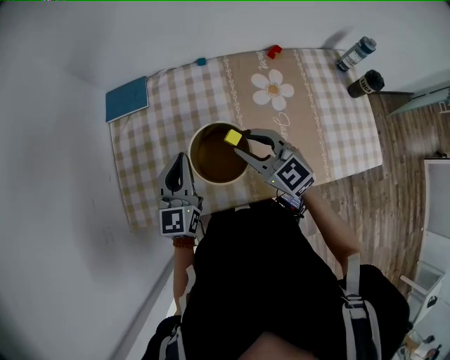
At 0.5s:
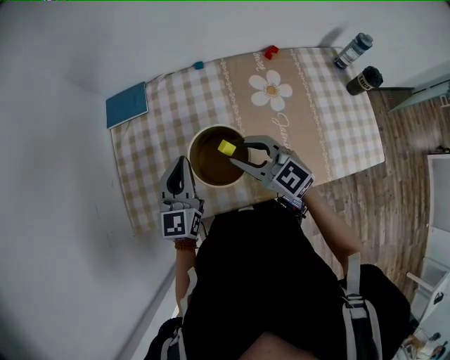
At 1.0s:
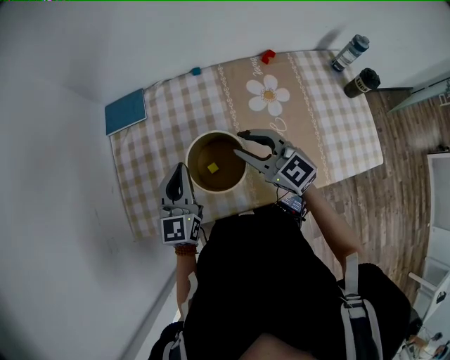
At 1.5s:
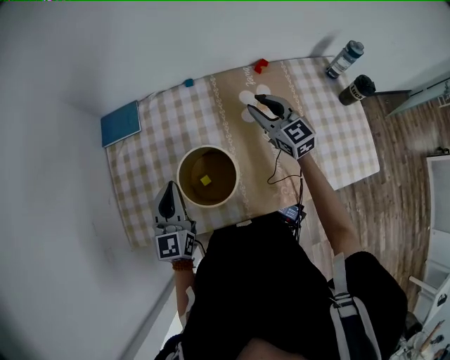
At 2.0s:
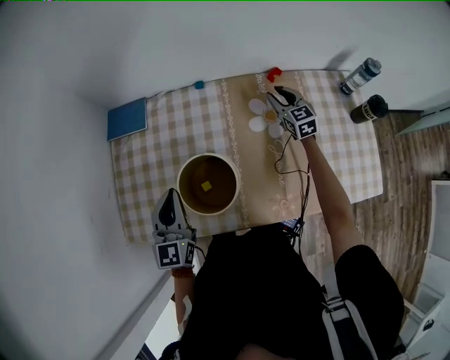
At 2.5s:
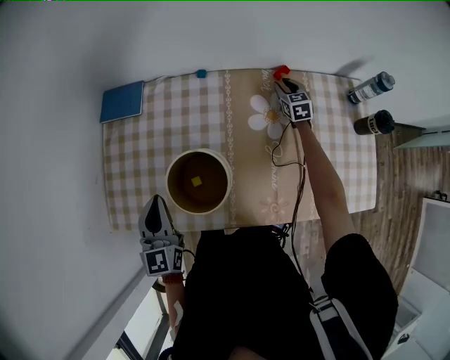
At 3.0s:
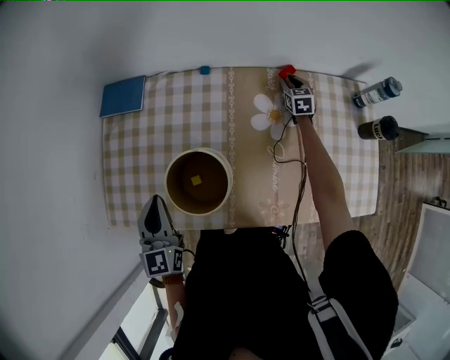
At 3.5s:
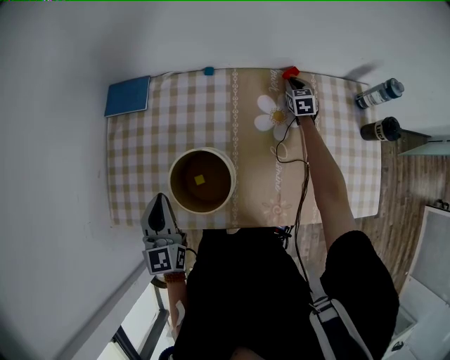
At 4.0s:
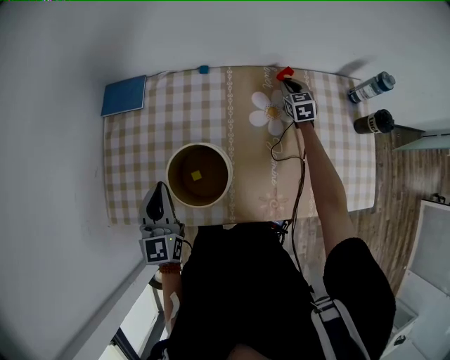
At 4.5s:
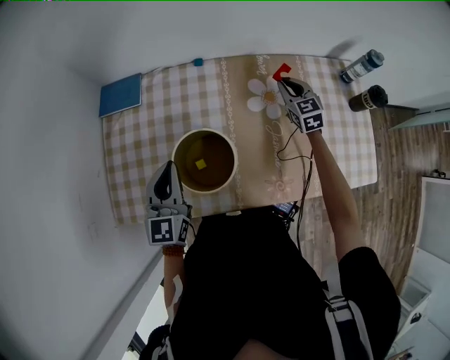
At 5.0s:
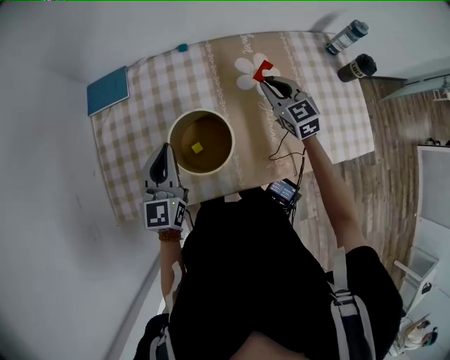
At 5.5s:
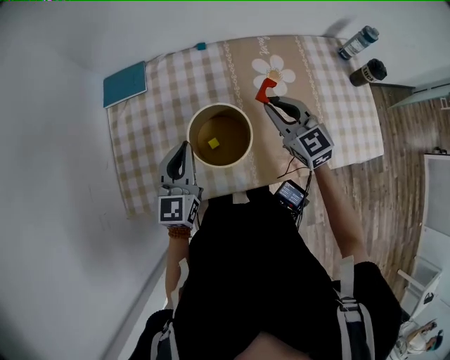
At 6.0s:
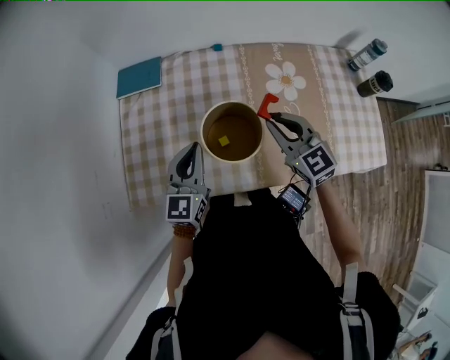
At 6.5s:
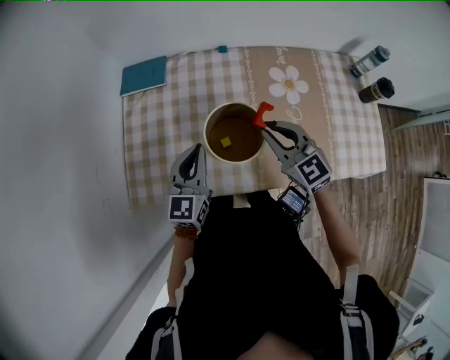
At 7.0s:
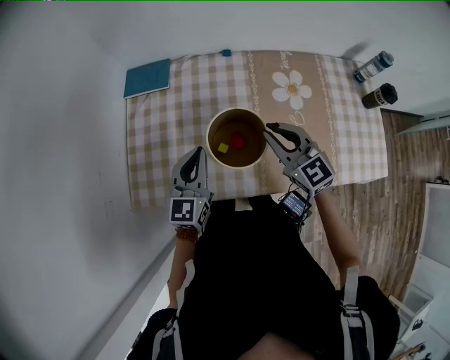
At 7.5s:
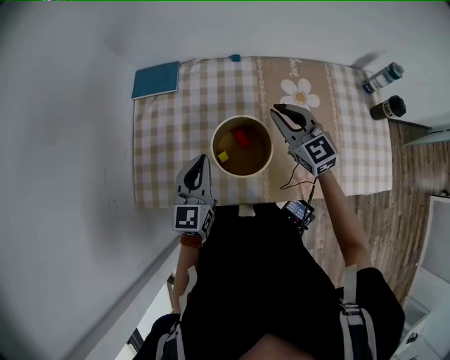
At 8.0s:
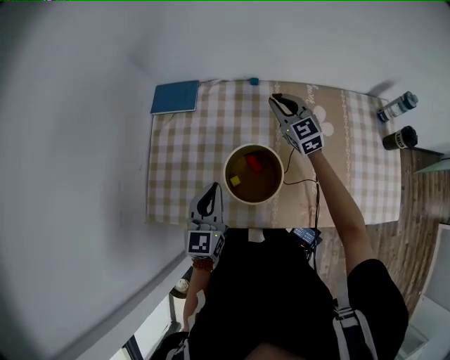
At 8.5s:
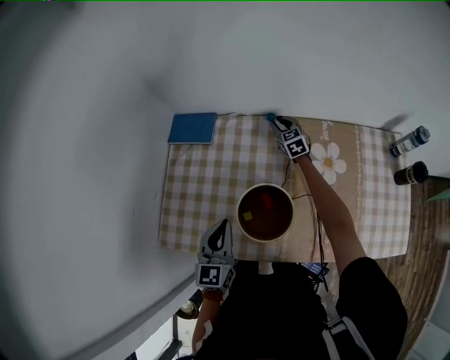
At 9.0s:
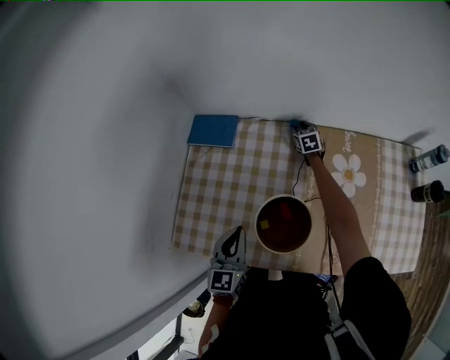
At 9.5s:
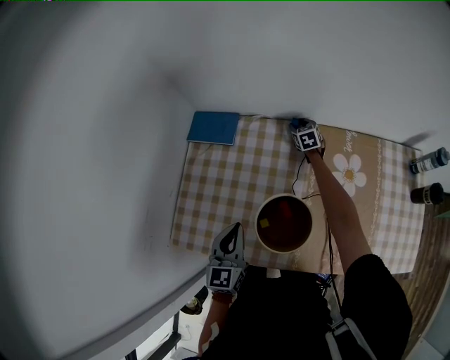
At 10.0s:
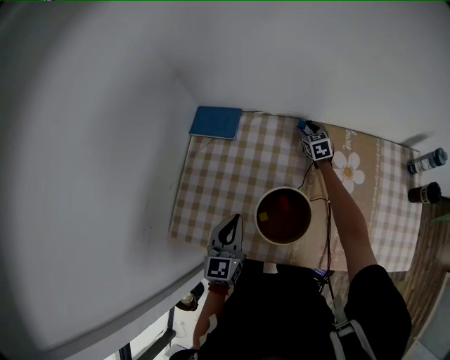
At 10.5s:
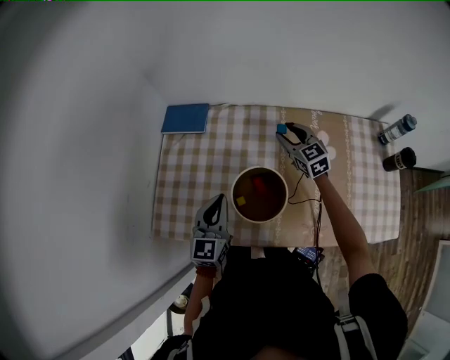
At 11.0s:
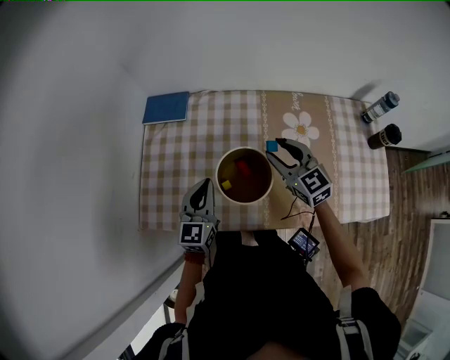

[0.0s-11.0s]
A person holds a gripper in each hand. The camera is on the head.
0.0s to 2.0s: The right gripper goes about 35 cm to the right, forward and downward, and turns by roughly 20 degrees.
2.0s to 3.5s: The right gripper shifts approximately 15 cm downward, forward and to the right, and closes its fingers.
3.5s to 5.5s: The right gripper moves backward, upward and to the left, approximately 40 cm, and turns by about 30 degrees. Meanwhile the left gripper swivels some 30 degrees.
5.5s to 7.5s: The right gripper shifts by approximately 5 cm.
7.5s to 9.0s: The right gripper travels forward and downward by about 40 cm, rotates about 30 degrees, and opens up.
9.0s to 11.0s: The right gripper heads backward and upward, covering some 40 cm, and rotates some 30 degrees.

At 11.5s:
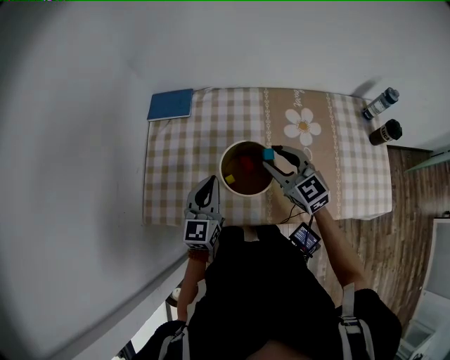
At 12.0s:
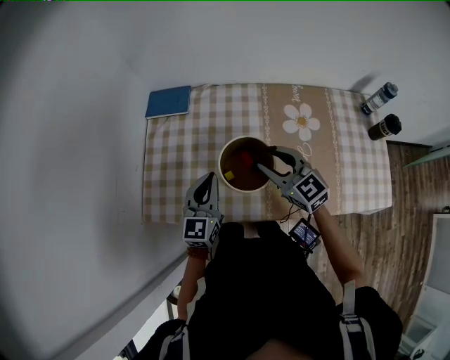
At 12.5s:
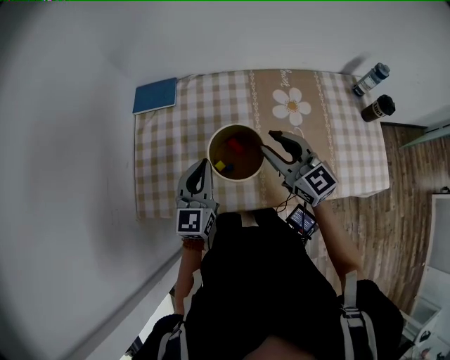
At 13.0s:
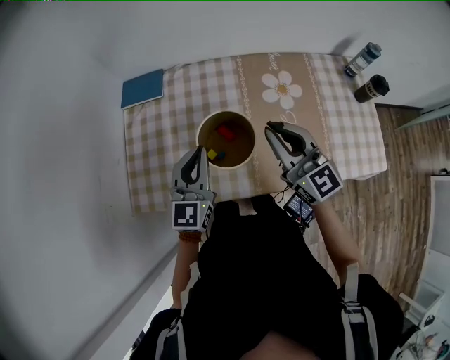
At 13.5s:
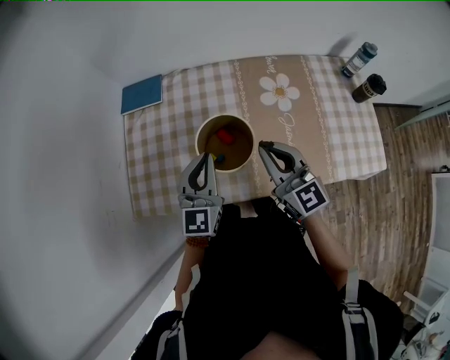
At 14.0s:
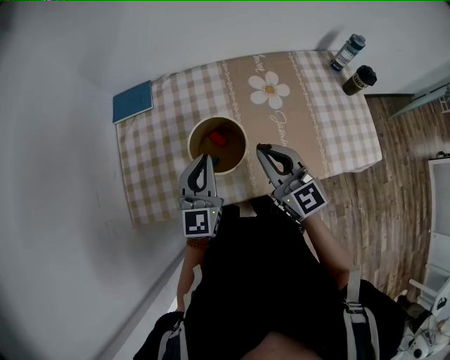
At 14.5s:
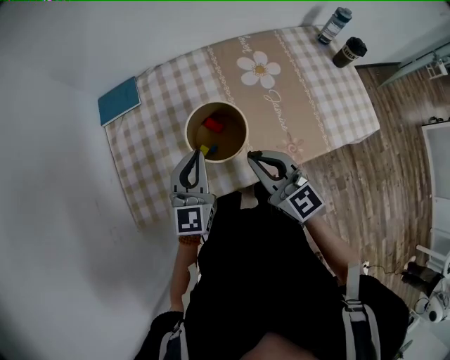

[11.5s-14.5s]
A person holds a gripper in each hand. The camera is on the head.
11.5s to 13.0s: The right gripper heads upward and backward, covering some 10 cm, changes its angle by some 20 degrees, and closes its fingers. Meanwhile the left gripper is displaced upward by some 5 cm.
13.0s to 14.5s: The right gripper travels backward, downward and to the left by some 10 cm.

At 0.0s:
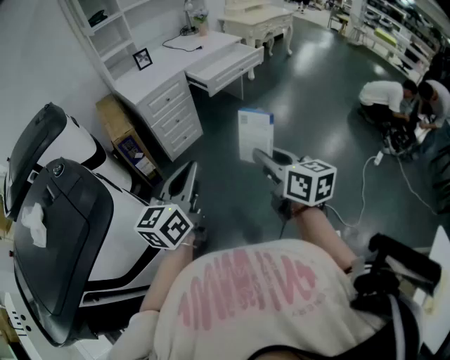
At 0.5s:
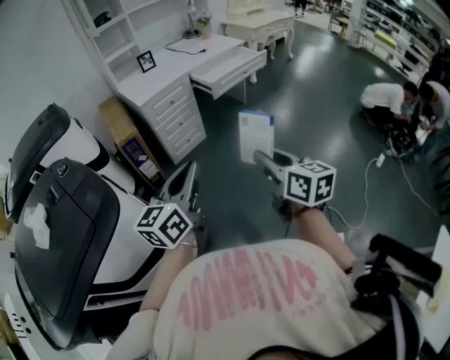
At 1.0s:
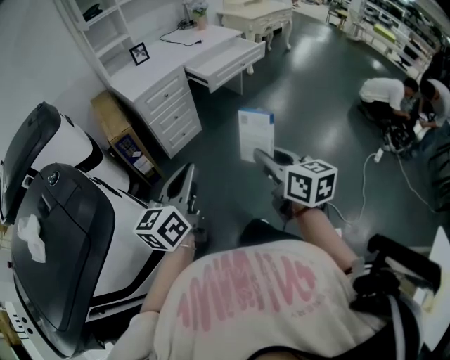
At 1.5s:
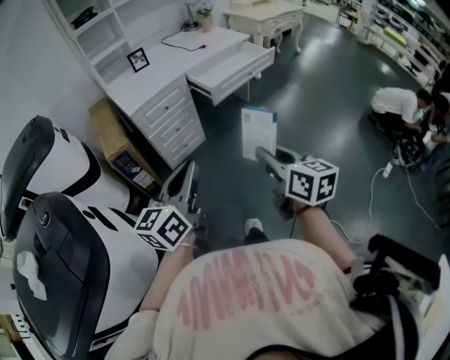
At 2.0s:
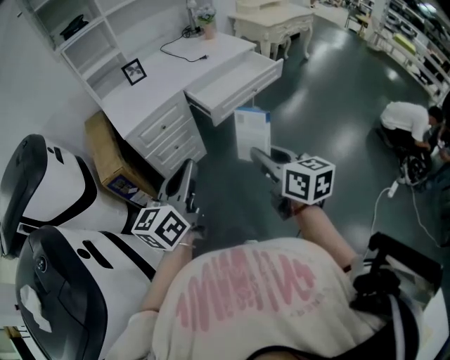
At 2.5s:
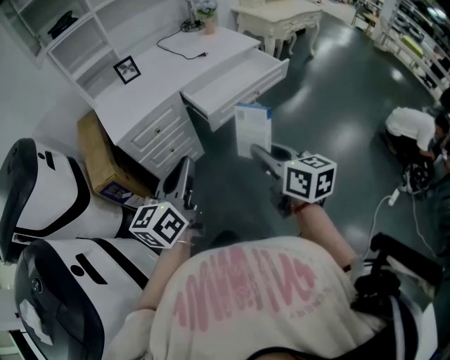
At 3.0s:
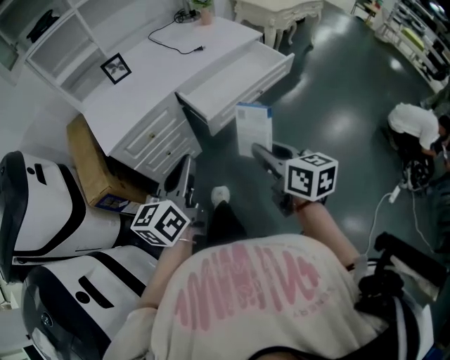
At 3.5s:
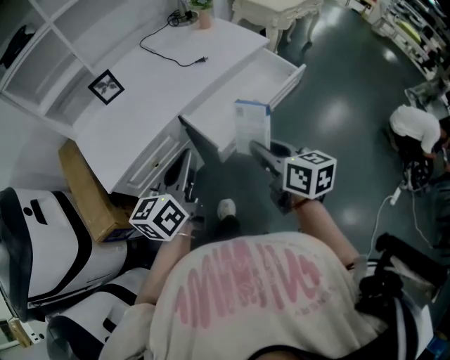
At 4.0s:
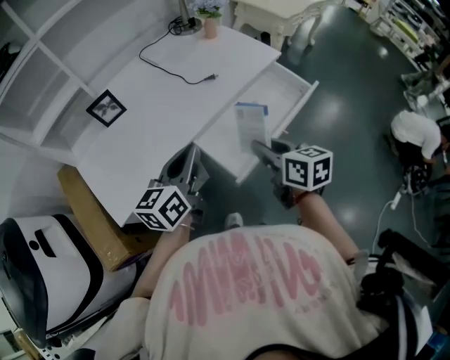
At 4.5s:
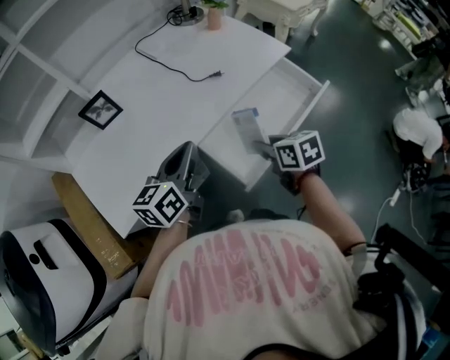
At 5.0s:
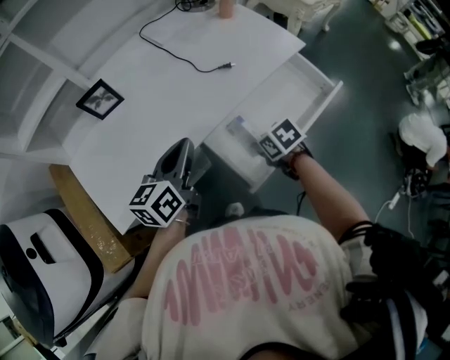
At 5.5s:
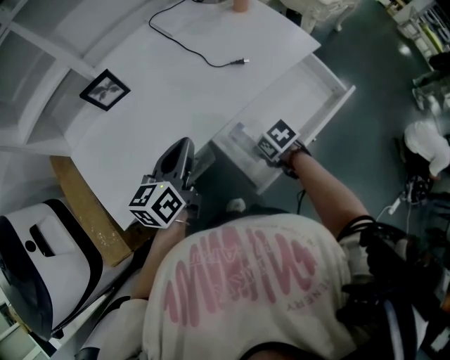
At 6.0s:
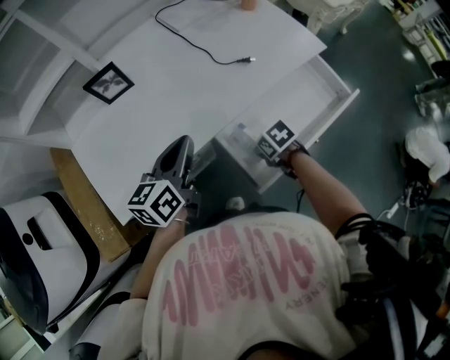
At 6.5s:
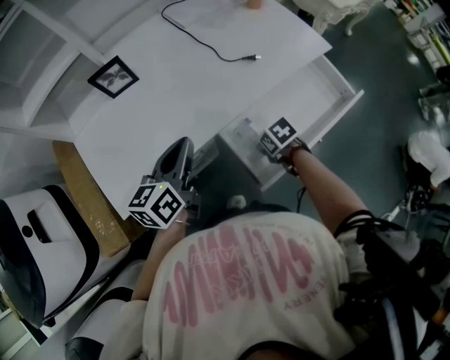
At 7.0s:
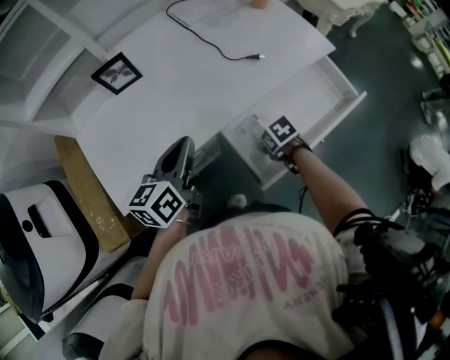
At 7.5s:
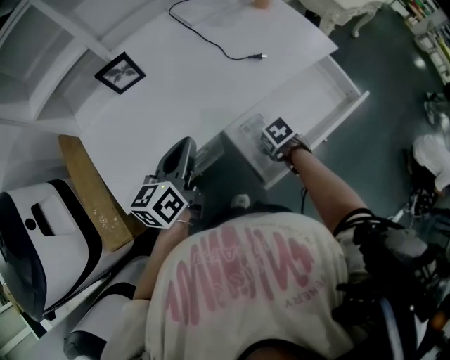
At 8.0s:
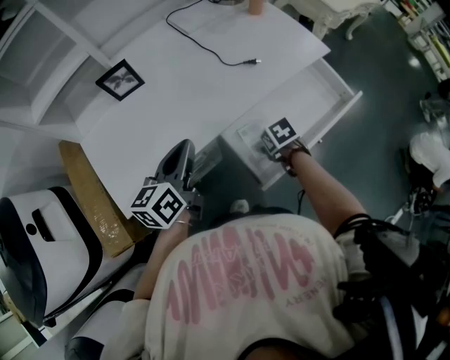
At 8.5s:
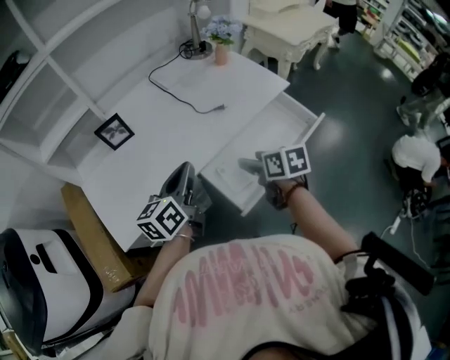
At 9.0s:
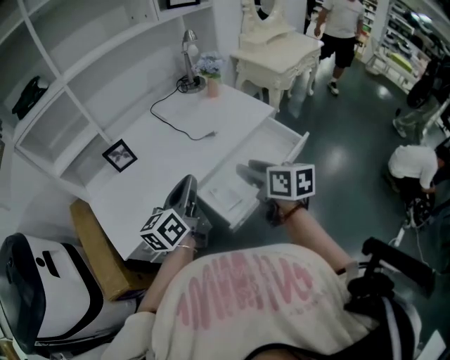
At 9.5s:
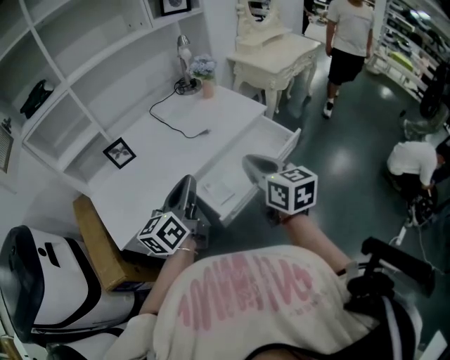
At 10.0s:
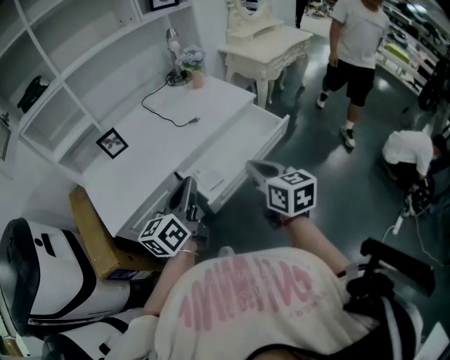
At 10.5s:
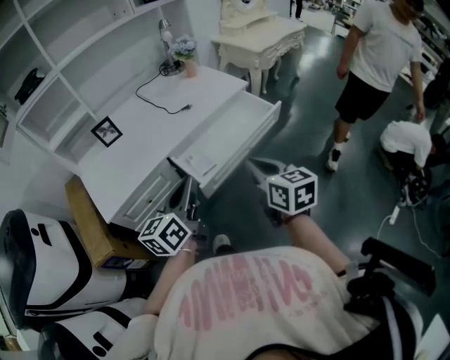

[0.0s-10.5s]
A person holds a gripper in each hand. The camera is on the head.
0.0s to 2.0s: Both grippers travel together forward, some 30 cm.
2.0s to 4.0s: The two grippers travel together, forward, some 50 cm.
4.0s to 6.5s: The right gripper shifts approximately 25 cm downward, and angles its fingers downward, by some 40 degrees; the left gripper shifts by roughly 15 cm.
6.5s to 8.5s: The right gripper travels upward by some 20 cm, changes its angle by about 40 degrees, and opens up. Meanwhile the left gripper changes place by roughly 10 cm.
8.5s to 10.5s: The right gripper is displaced backward, to the right and upward by about 30 cm, swivels roughly 30 degrees, and closes up. The left gripper shifts roughly 25 cm backward and to the right.

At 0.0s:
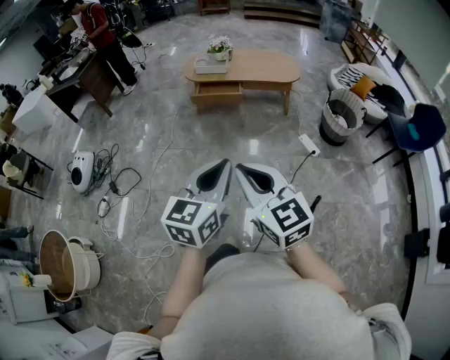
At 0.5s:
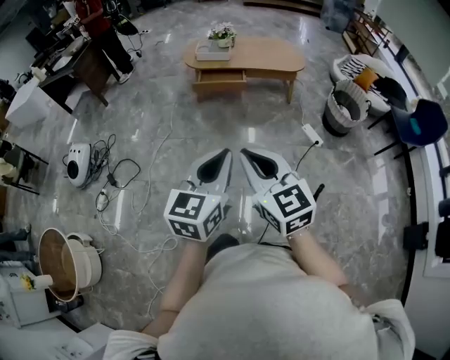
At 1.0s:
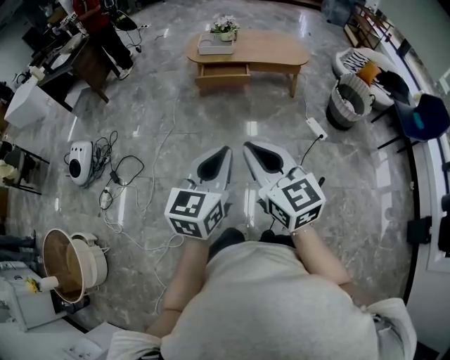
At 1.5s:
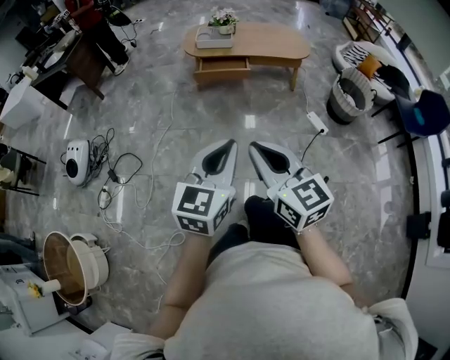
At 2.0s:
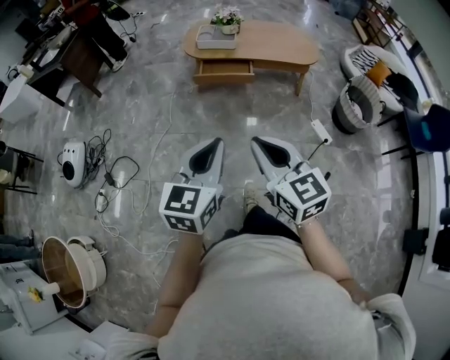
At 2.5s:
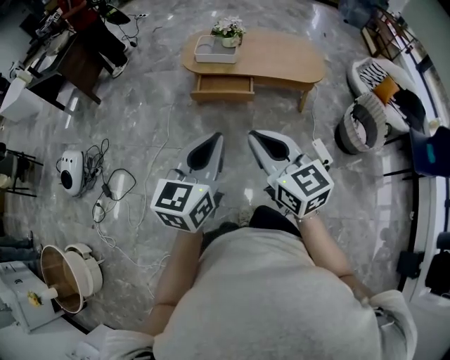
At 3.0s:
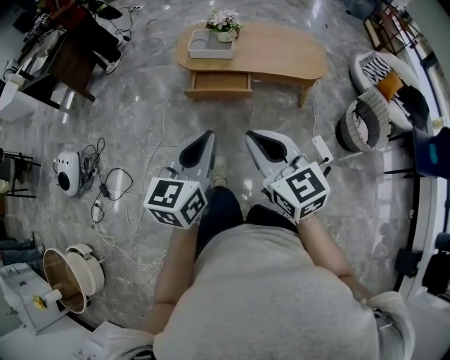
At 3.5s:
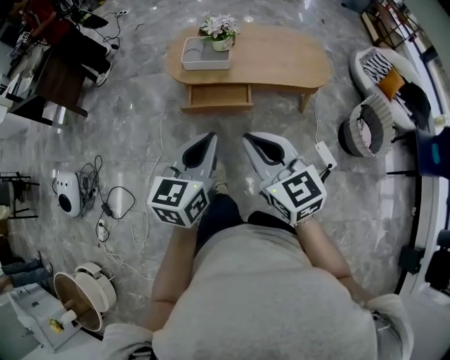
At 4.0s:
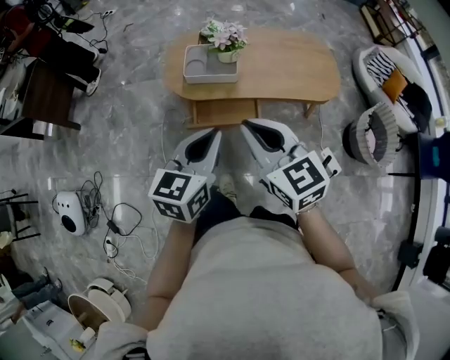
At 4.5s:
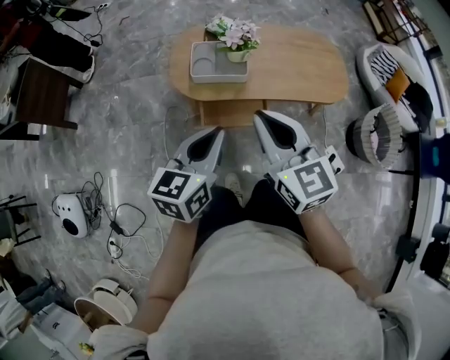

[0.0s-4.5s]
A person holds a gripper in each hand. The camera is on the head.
0.0s to 2.0s: The right gripper is displaced forward by approximately 25 cm. Meanwhile the left gripper shifts approximately 25 cm forward and to the left.
2.0s to 4.5s: Both grippers are carried forward, approximately 60 cm.
